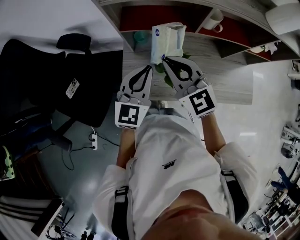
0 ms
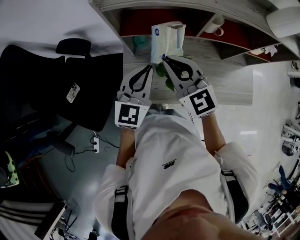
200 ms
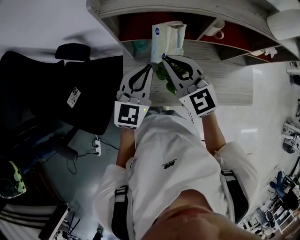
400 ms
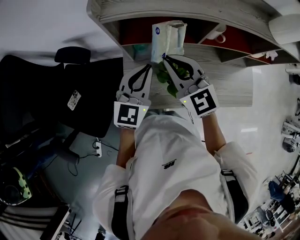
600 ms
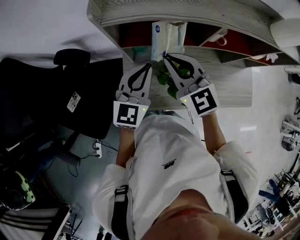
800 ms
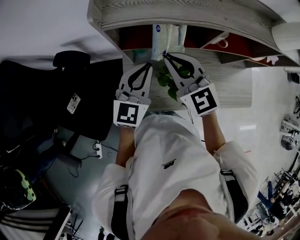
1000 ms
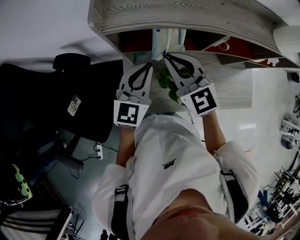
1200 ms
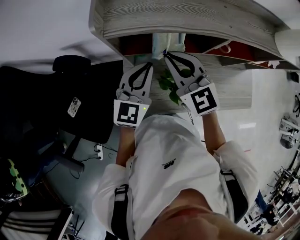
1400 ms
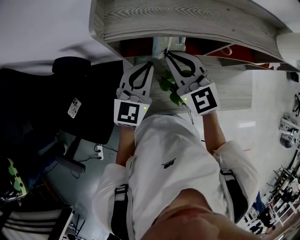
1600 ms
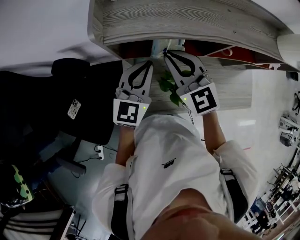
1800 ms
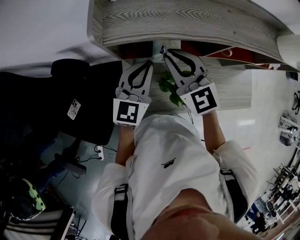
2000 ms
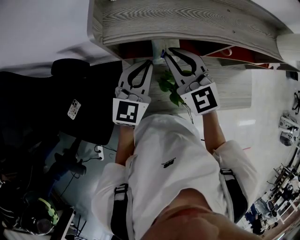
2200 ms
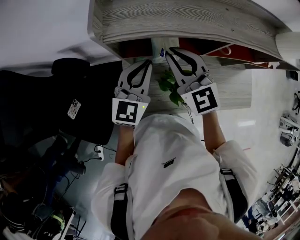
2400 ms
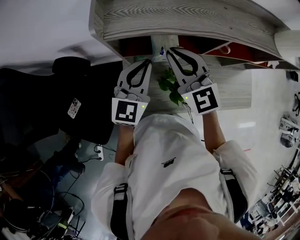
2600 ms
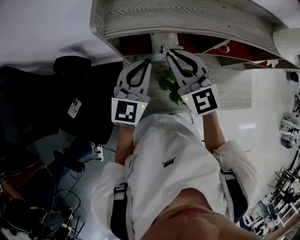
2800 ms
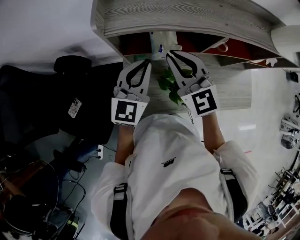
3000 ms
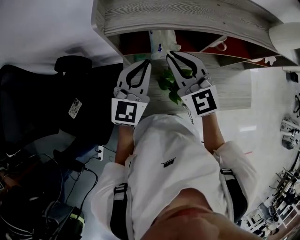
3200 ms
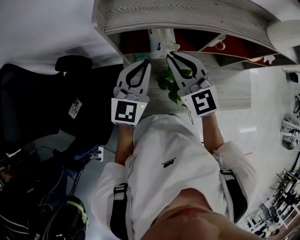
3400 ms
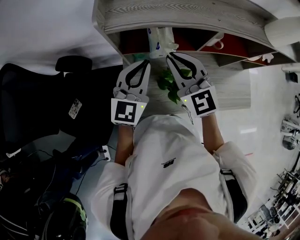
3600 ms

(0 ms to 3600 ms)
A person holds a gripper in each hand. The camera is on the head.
0 ms - 1800 ms: Both grippers move forward, some 15 cm.
1800 ms - 3600 ms: The right gripper changes place by about 5 cm, while the left gripper changes place by some 5 cm.

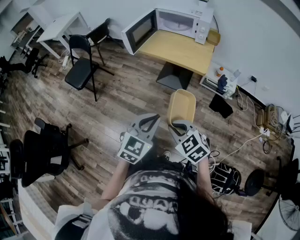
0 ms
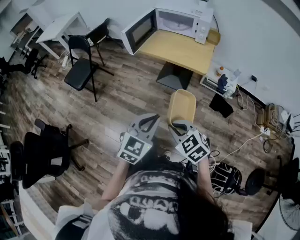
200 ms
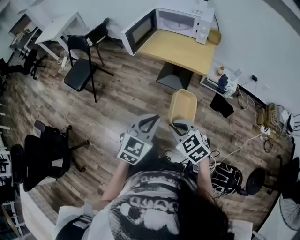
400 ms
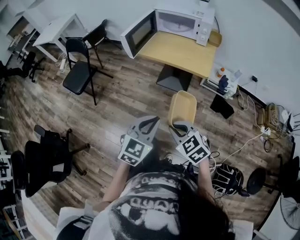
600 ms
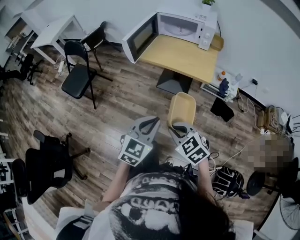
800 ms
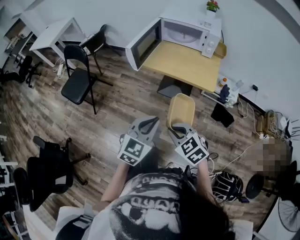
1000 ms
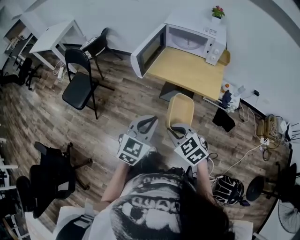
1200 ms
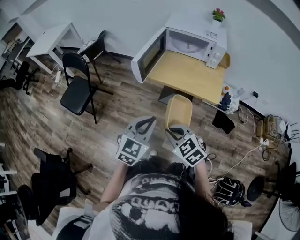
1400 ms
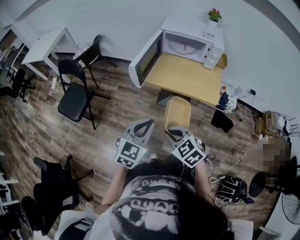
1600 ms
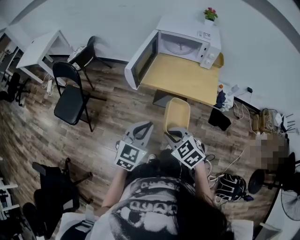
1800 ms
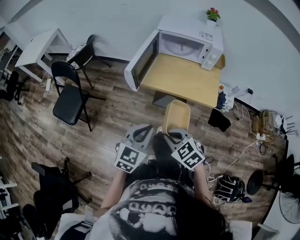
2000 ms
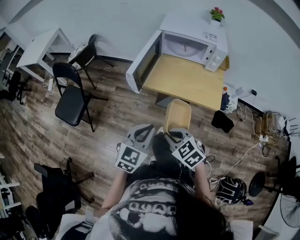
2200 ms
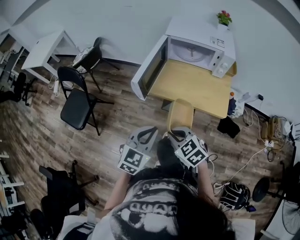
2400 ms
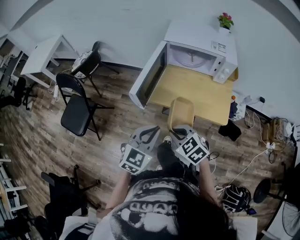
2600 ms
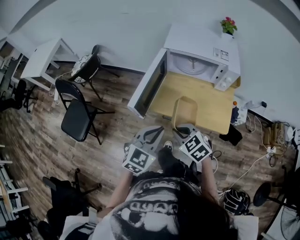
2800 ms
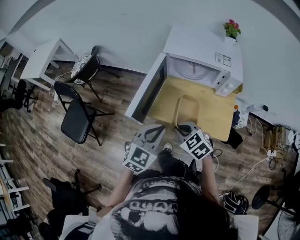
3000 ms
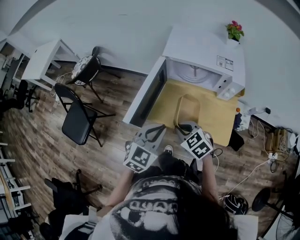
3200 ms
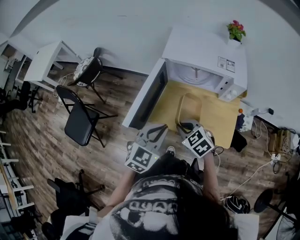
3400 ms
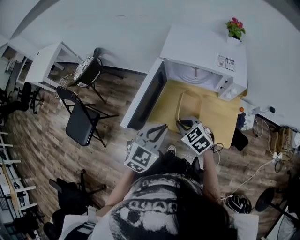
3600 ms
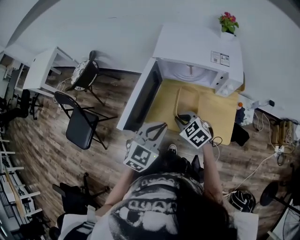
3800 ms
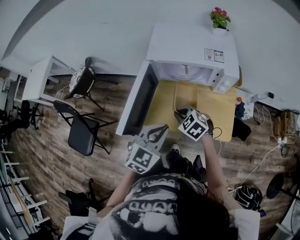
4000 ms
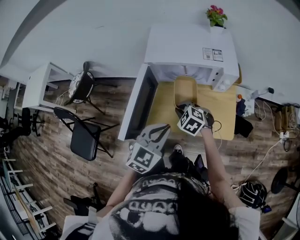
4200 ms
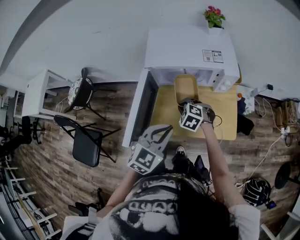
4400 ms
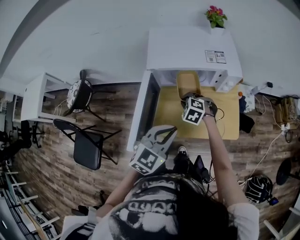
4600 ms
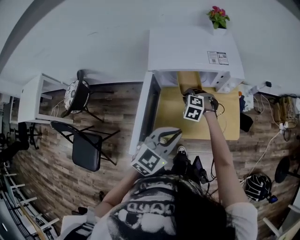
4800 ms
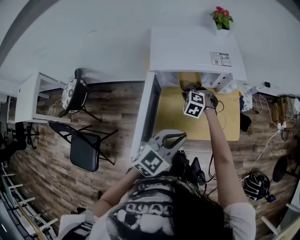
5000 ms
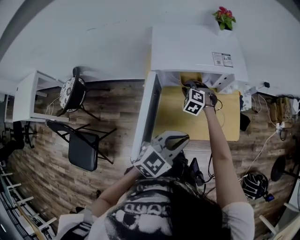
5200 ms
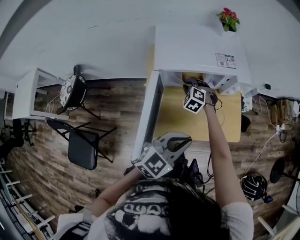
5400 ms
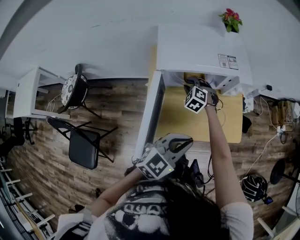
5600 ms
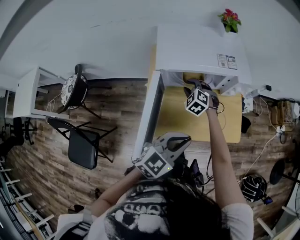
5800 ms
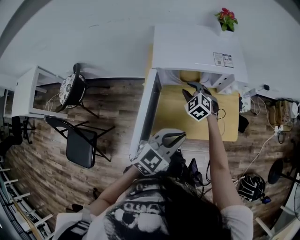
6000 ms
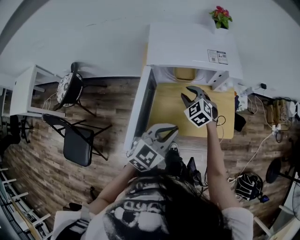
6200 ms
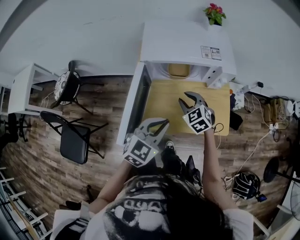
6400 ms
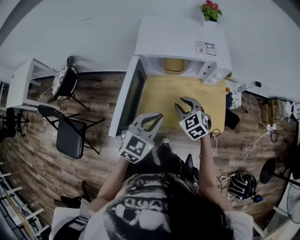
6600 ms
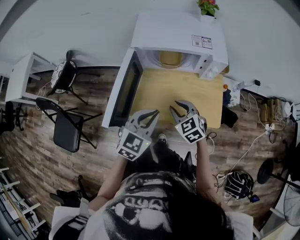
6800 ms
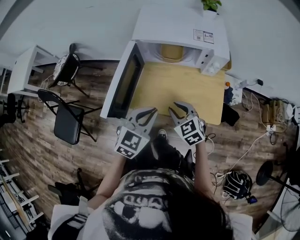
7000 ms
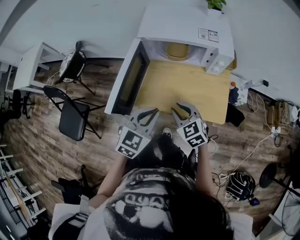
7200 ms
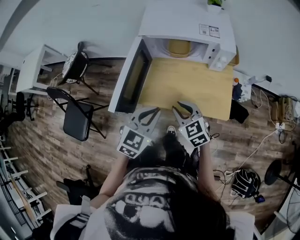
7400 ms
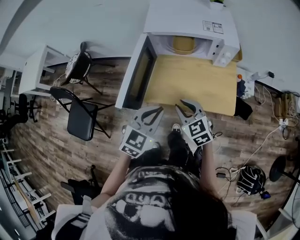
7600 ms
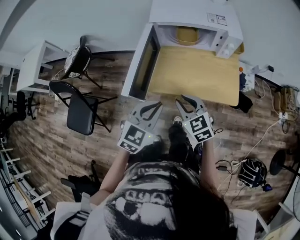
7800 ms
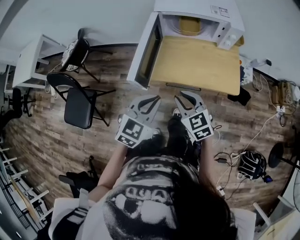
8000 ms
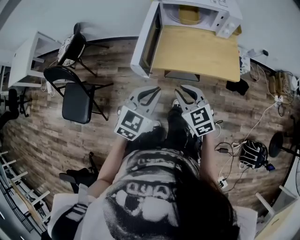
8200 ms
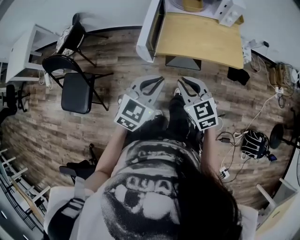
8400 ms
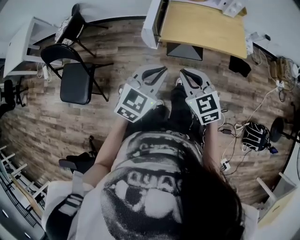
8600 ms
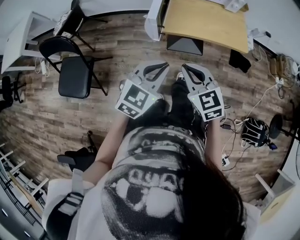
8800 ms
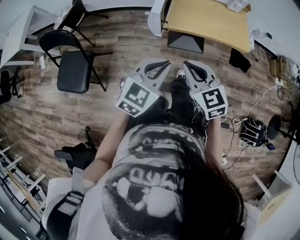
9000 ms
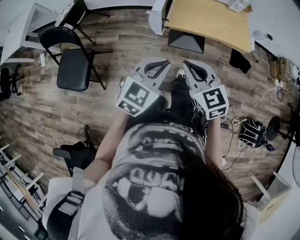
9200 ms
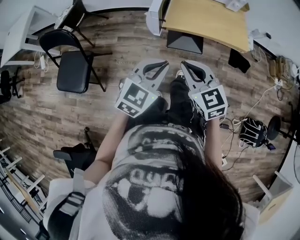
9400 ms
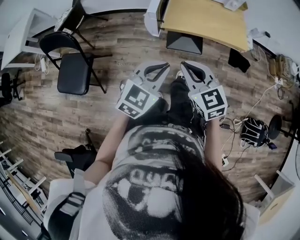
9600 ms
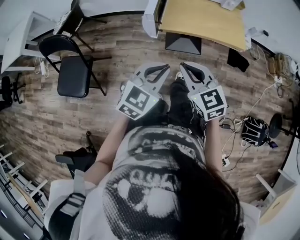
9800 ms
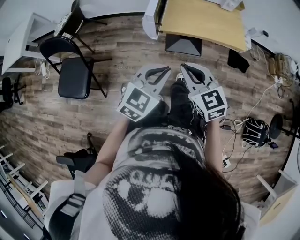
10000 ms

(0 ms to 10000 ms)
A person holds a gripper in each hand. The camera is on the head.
0 ms - 1400 ms: The two grippers go some 25 cm forward and to the left.
1400 ms - 2800 ms: Both grippers travel together forward, roughly 25 cm.
2800 ms - 4200 ms: The left gripper travels forward and to the right by approximately 15 cm, while the right gripper is displaced forward by approximately 20 cm.
4200 ms - 5800 ms: The left gripper changes its angle by approximately 20 degrees; the right gripper changes place by some 15 cm, rotates some 20 degrees, and opens.
5800 ms - 7200 ms: The right gripper ends up approximately 25 cm from where it was, and turns by approximately 30 degrees. Meanwhile the left gripper changes place by some 5 cm, and rotates some 30 degrees.
7200 ms - 8600 ms: The grippers both shift backward and to the left by approximately 25 cm. The right gripper closes up.
8600 ms - 10000 ms: The left gripper heads backward, covering approximately 5 cm.

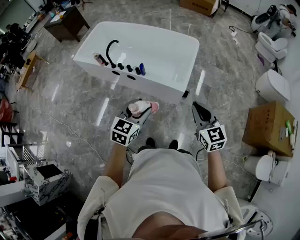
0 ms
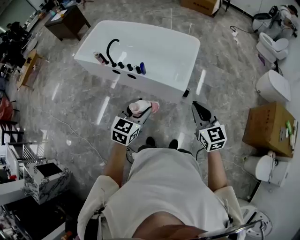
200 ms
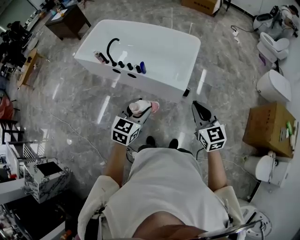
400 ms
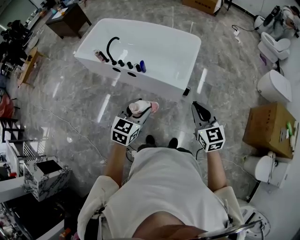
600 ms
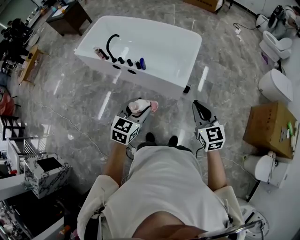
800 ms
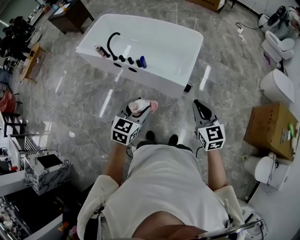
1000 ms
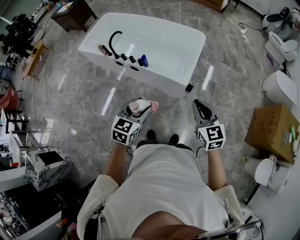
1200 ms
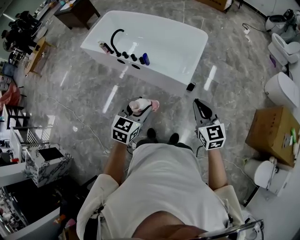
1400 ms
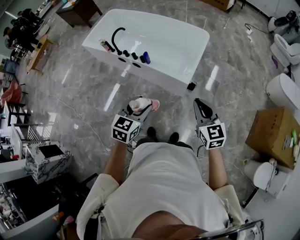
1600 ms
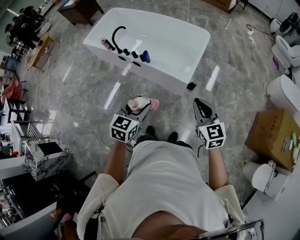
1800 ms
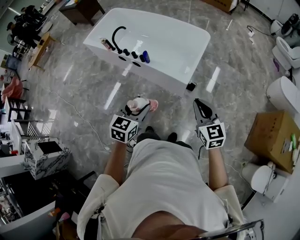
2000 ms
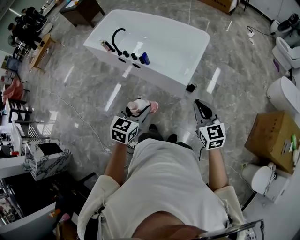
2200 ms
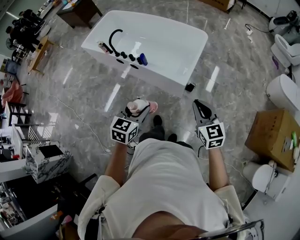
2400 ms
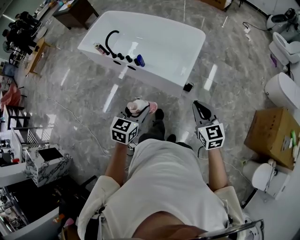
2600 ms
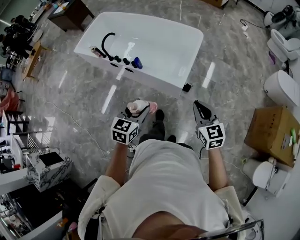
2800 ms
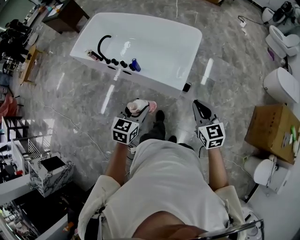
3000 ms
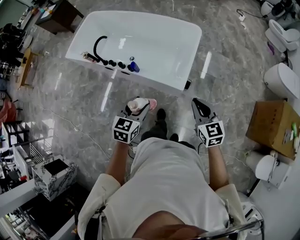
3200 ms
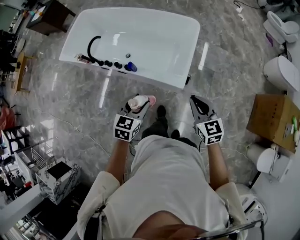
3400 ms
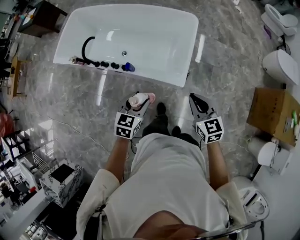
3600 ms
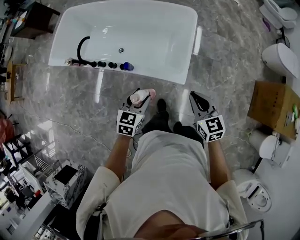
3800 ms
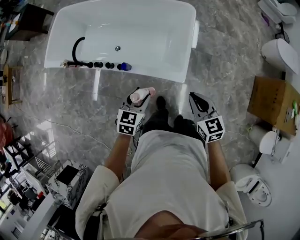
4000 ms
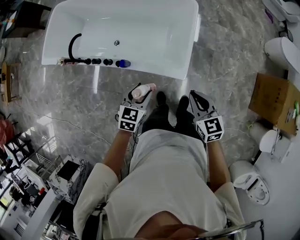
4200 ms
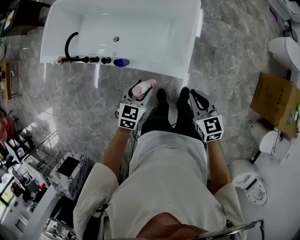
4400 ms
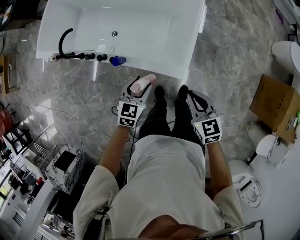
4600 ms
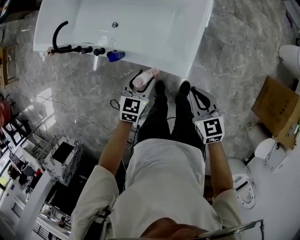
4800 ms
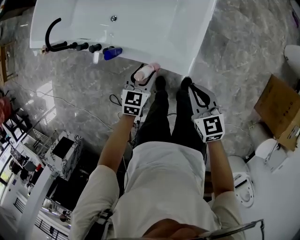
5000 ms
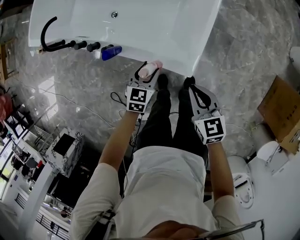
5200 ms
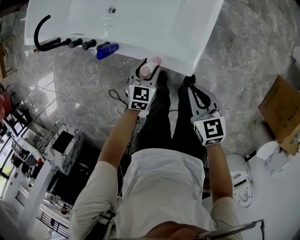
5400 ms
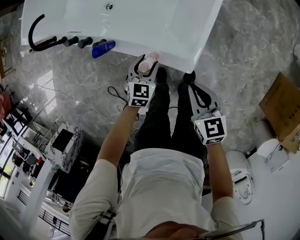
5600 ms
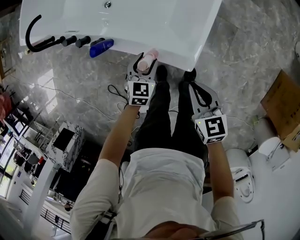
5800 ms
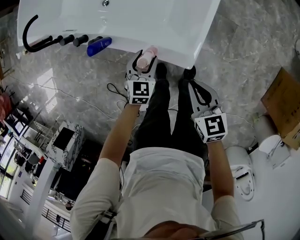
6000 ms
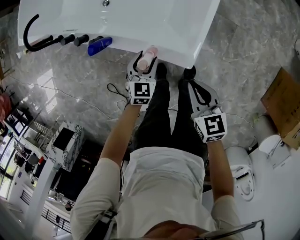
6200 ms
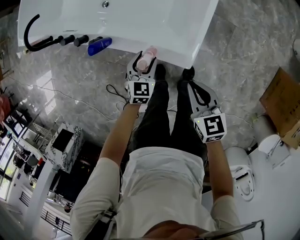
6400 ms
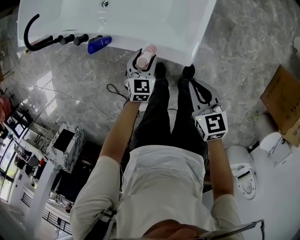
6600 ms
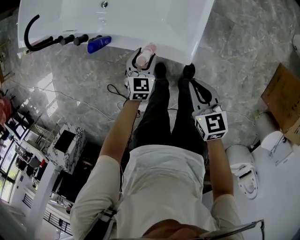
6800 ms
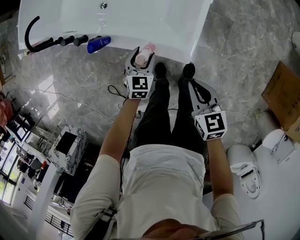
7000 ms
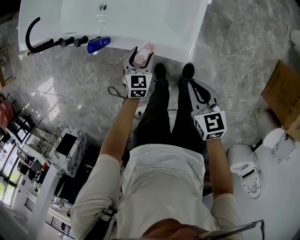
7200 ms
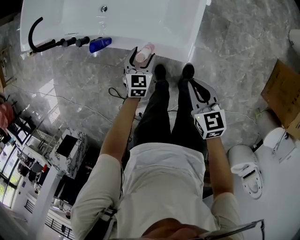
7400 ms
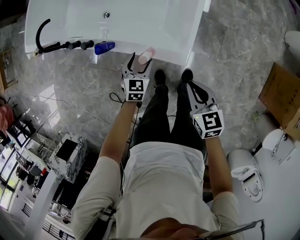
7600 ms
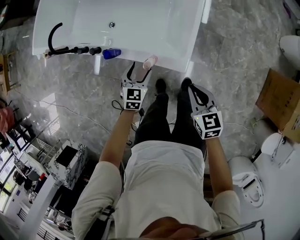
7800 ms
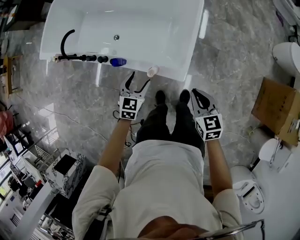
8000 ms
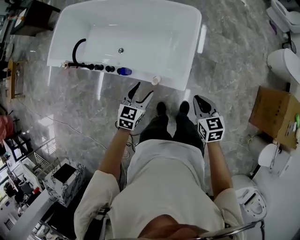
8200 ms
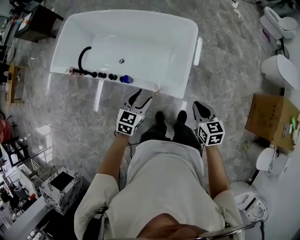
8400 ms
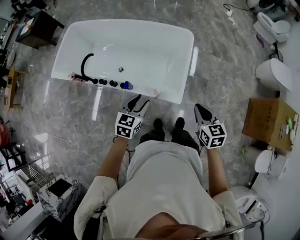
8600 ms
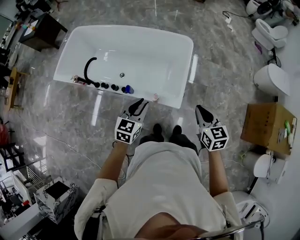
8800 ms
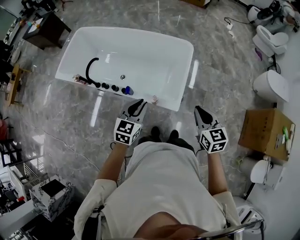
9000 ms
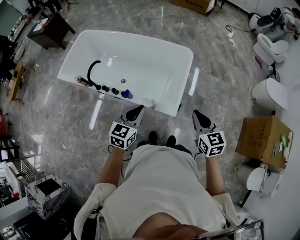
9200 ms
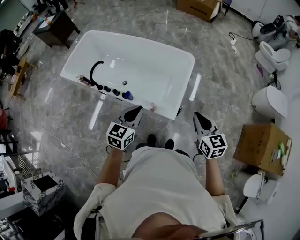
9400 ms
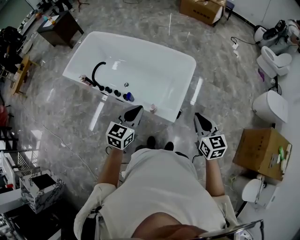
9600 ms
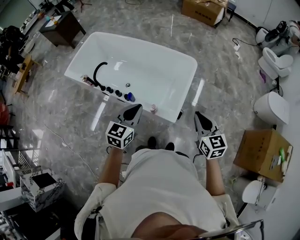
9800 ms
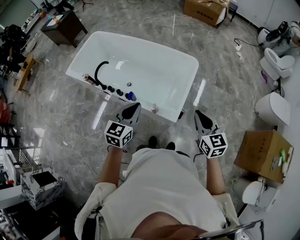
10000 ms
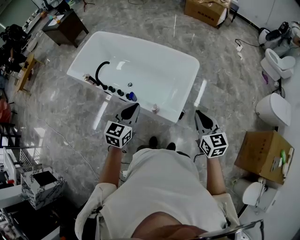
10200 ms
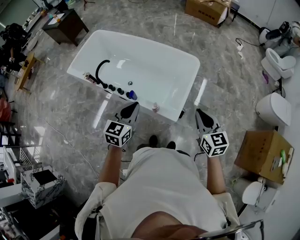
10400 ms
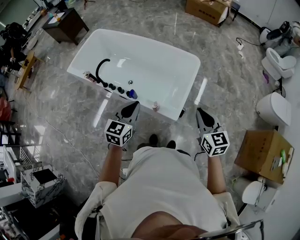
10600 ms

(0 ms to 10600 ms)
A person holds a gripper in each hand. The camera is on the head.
0 ms - 1600 ms: The two grippers go about 5 cm to the right.
1600 ms - 3000 ms: The two grippers go some 10 cm forward.
3000 ms - 4600 ms: The two grippers go approximately 30 cm forward and downward.
4600 ms - 6000 ms: Both grippers move downward, roughly 20 cm.
6000 ms - 7600 ms: The left gripper shifts by approximately 5 cm. Meanwhile the right gripper heads upward, covering approximately 5 cm.
7600 ms - 9000 ms: The grippers both shift upward by approximately 35 cm. The left gripper changes its angle by approximately 20 degrees, and closes its fingers.
9000 ms - 10600 ms: Both grippers move upward, roughly 5 cm.
